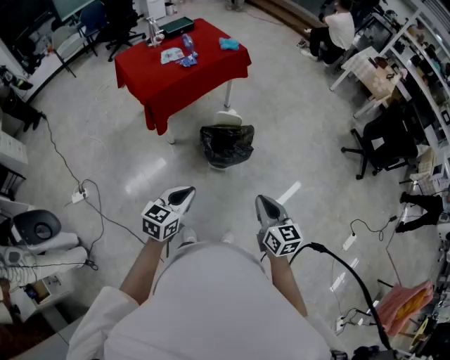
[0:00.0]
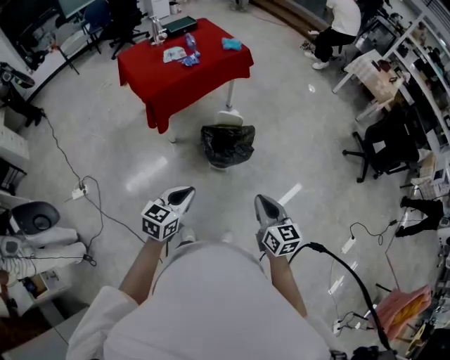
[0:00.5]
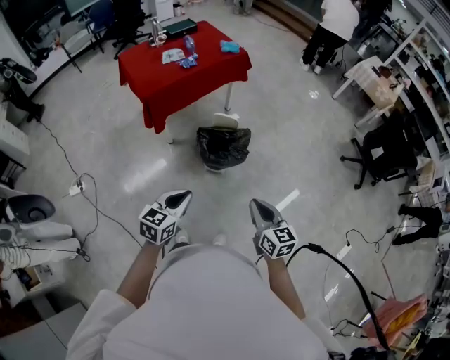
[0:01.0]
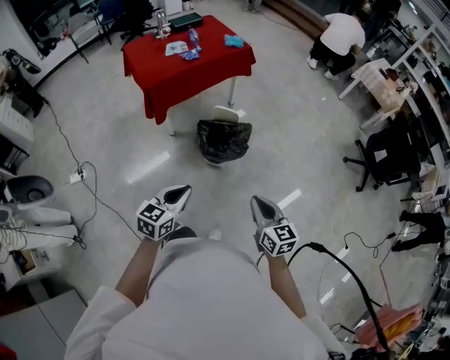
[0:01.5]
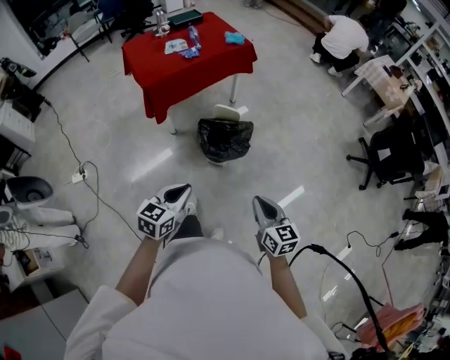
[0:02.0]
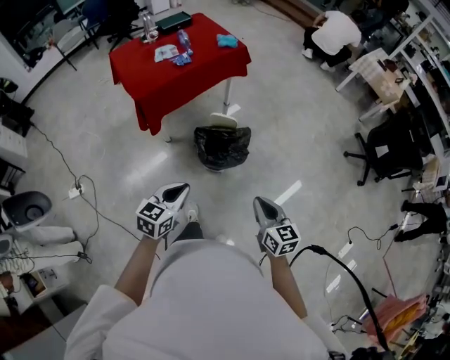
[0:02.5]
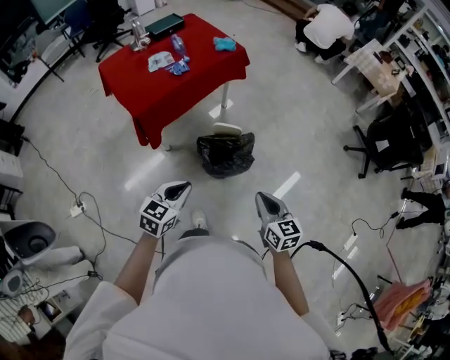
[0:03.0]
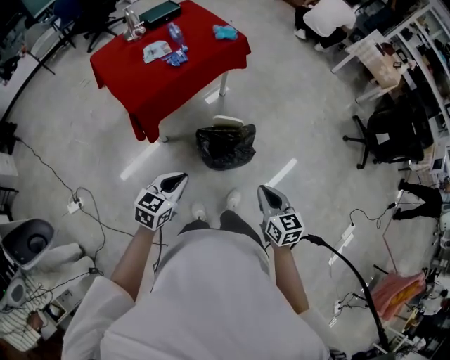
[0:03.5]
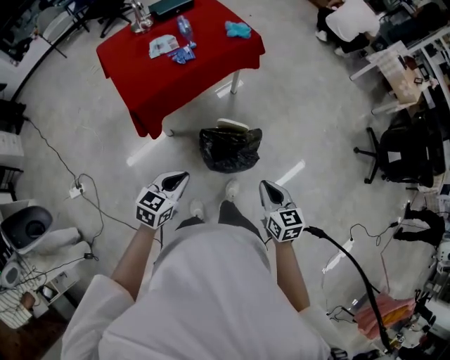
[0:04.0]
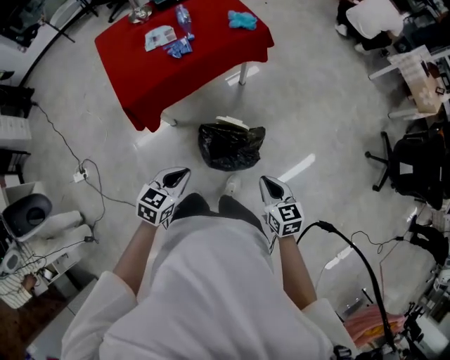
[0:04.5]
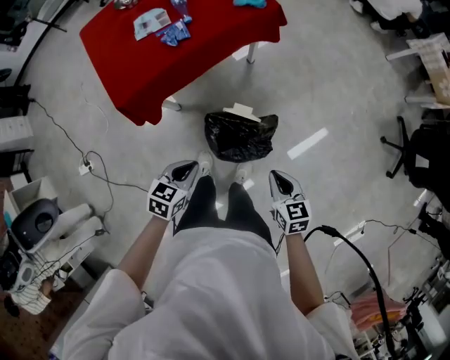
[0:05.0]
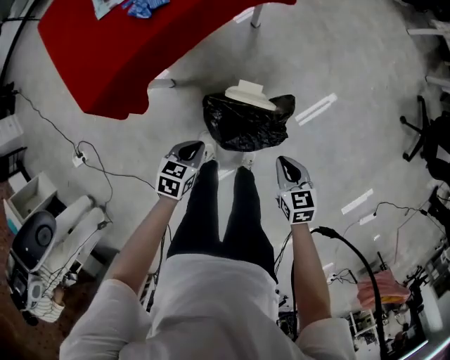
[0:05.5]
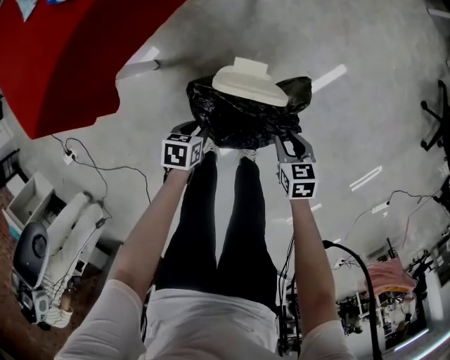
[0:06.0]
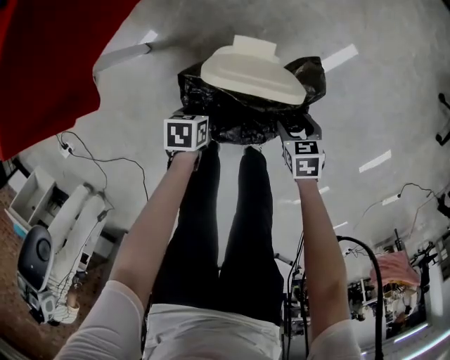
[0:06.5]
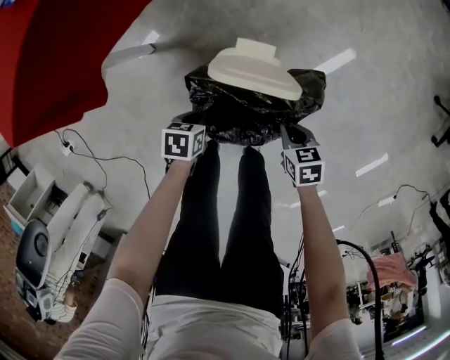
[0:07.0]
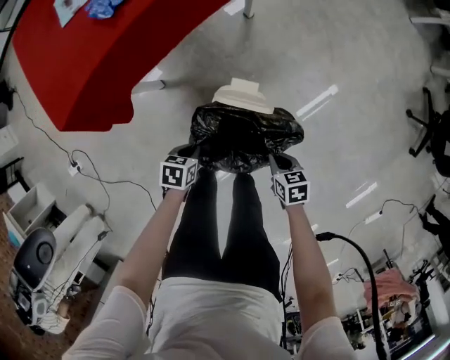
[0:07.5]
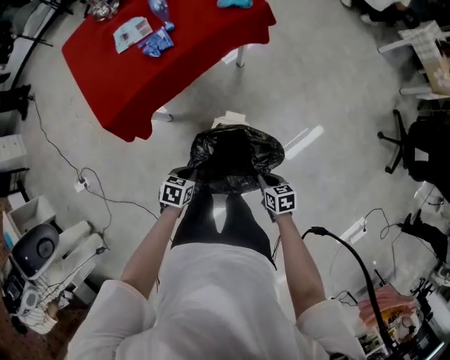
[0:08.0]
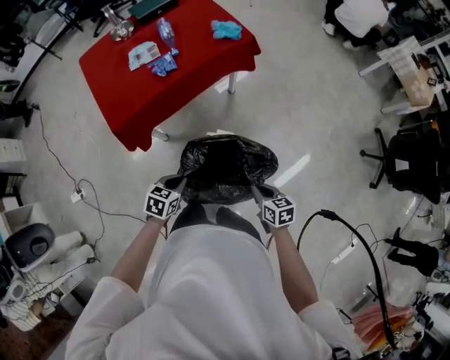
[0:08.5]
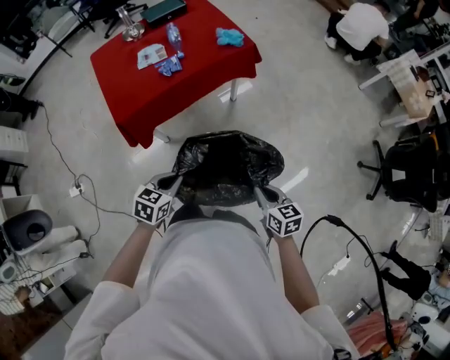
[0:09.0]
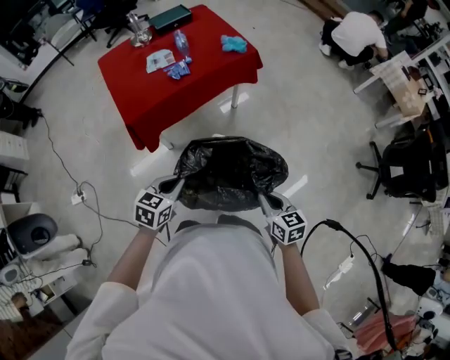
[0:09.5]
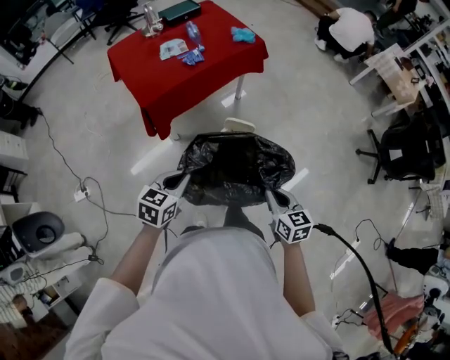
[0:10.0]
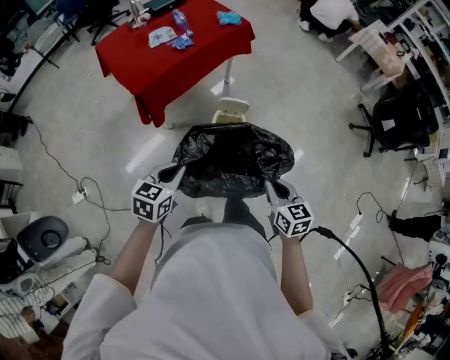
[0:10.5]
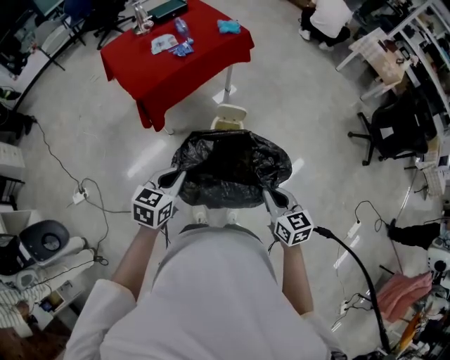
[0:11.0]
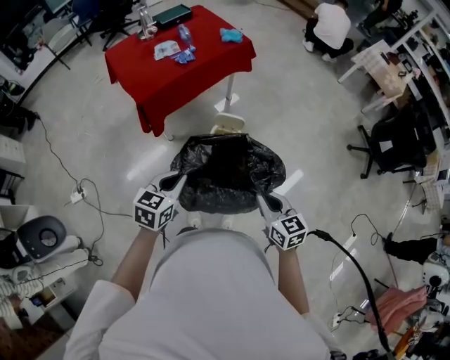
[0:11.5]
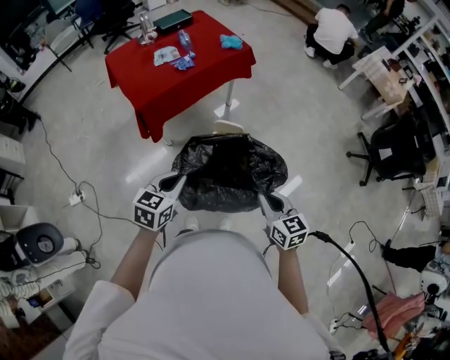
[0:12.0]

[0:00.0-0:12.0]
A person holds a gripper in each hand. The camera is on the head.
0:00.0 to 0:02.0: Both grippers move to the right, approximately 10 cm.
0:02.0 to 0:04.0: The right gripper goes approximately 30 cm forward, while the left gripper heads forward and to the left, covering roughly 30 cm.
0:04.0 to 0:06.0: Both grippers travel together downward, approximately 50 cm. The left gripper angles its fingers downward, by some 30 degrees, and opens; the right gripper swivels approximately 30 degrees, and opens up.
0:06.0 to 0:08.0: Both grippers move upward, approximately 25 cm. The right gripper closes. The left gripper closes.
0:08.0 to 0:10.0: The grippers both shift upward and backward by about 35 cm. The left gripper swivels about 30 degrees; the right gripper swivels some 30 degrees.
0:10.0 to 0:12.0: The right gripper moves upward, about 5 cm, while the left gripper moves some 5 cm.

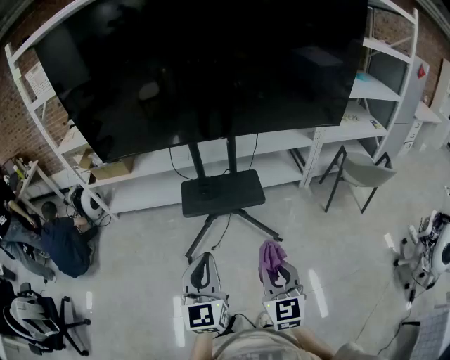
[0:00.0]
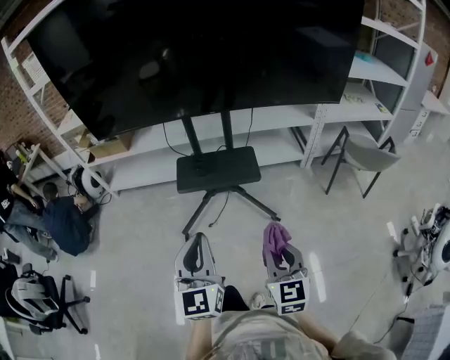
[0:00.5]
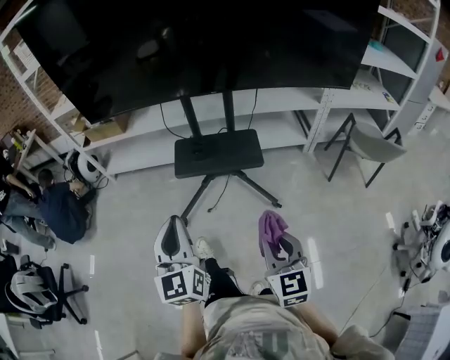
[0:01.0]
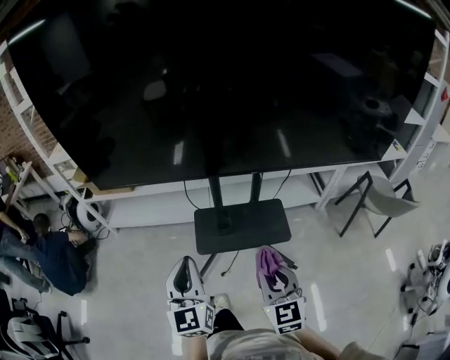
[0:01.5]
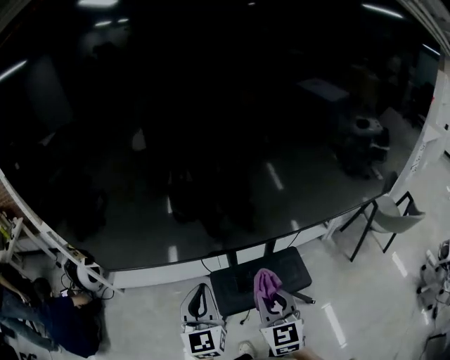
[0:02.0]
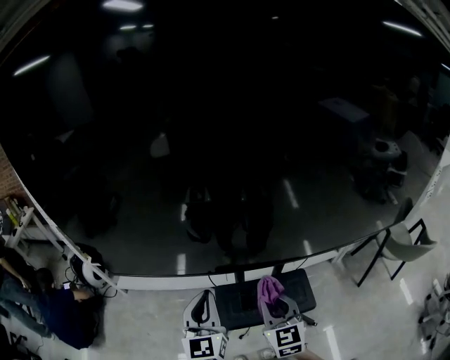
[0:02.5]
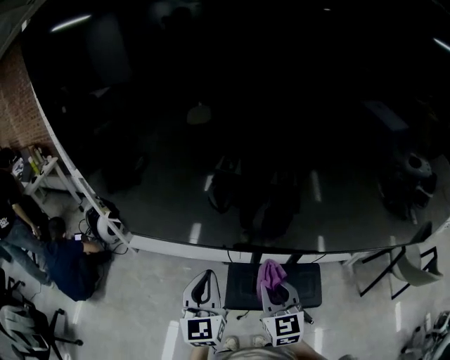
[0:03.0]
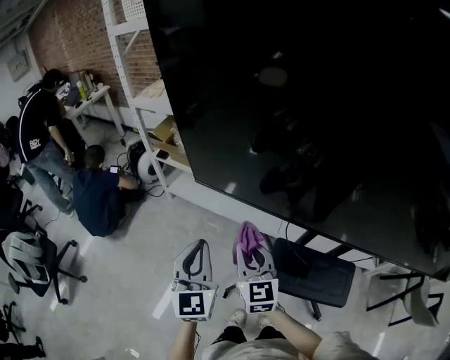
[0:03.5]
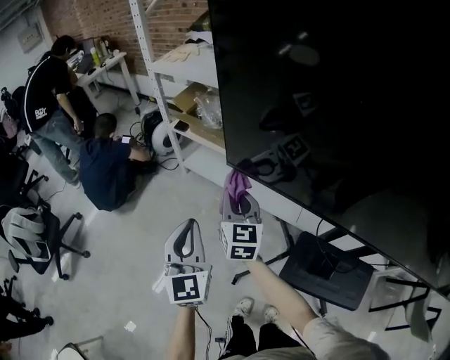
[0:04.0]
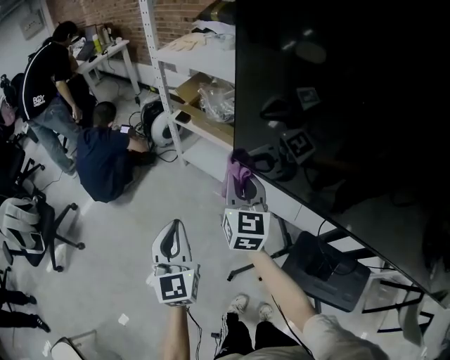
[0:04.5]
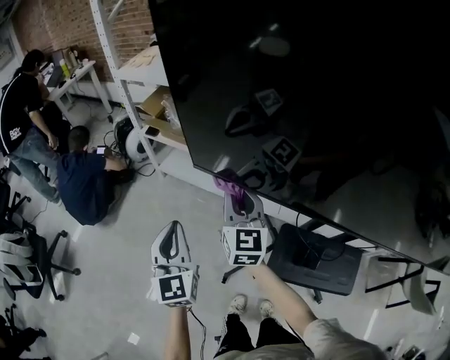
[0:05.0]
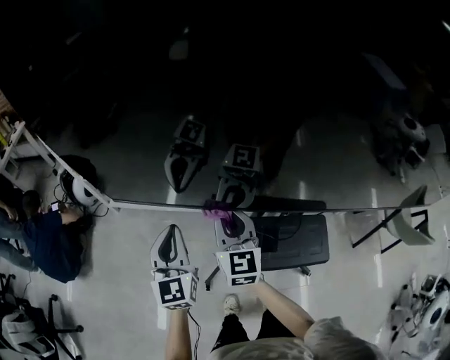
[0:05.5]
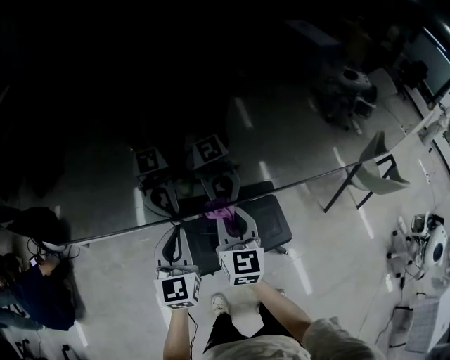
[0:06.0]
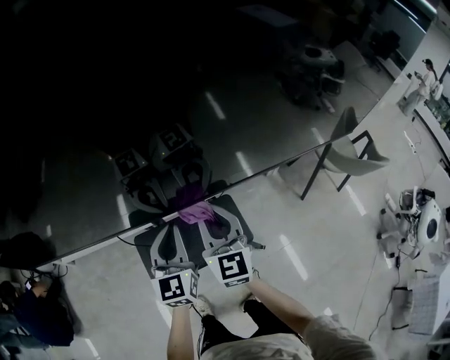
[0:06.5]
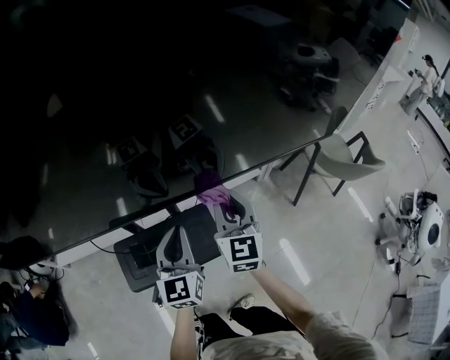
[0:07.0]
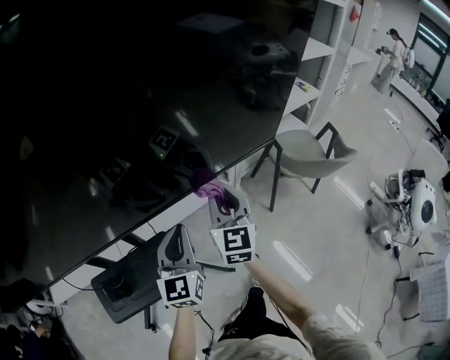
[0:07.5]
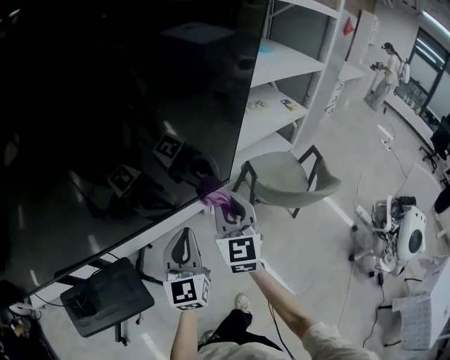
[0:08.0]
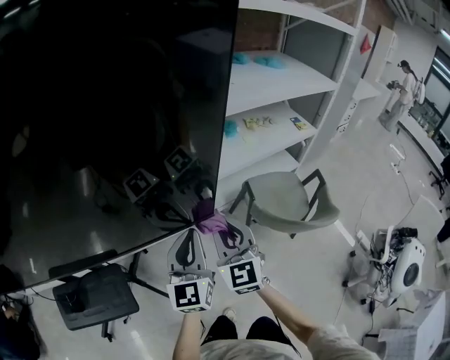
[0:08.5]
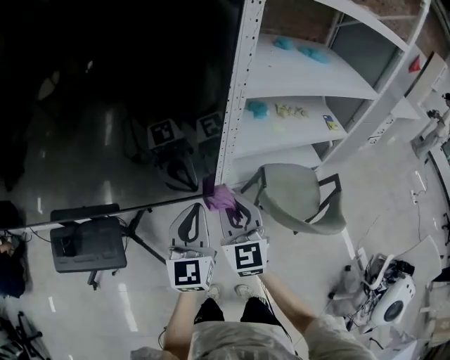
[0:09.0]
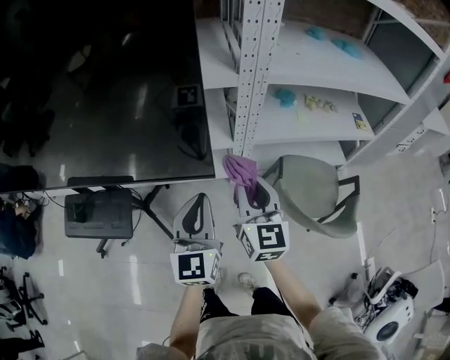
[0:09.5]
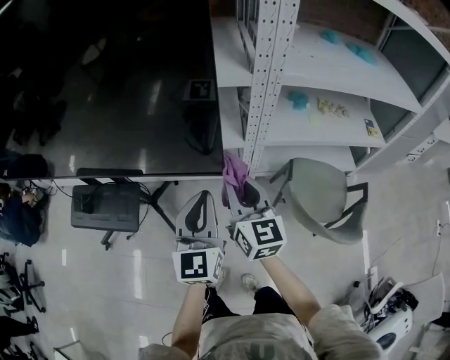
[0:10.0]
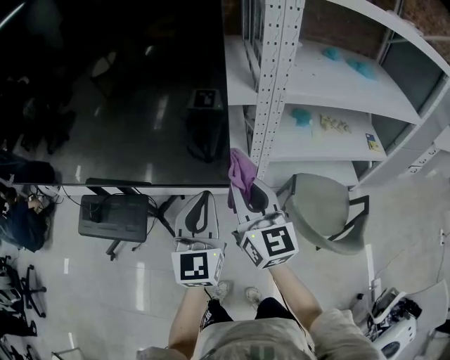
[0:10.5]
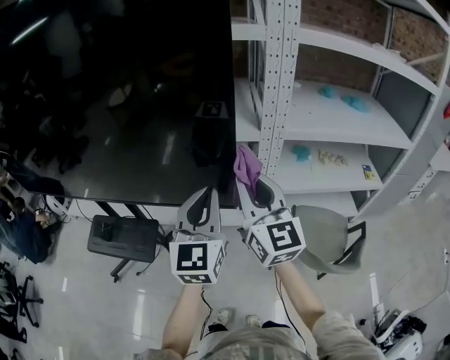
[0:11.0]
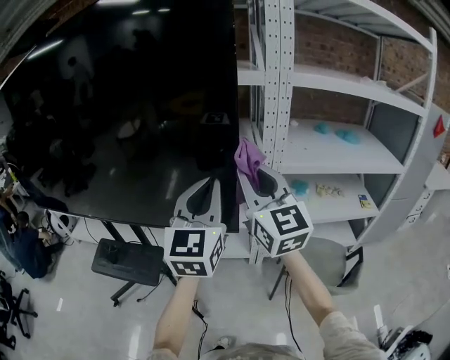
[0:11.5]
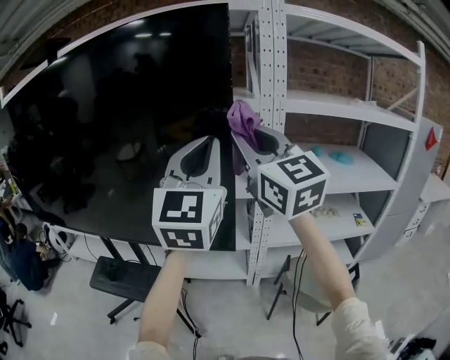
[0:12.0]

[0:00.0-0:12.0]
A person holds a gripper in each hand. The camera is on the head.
0:00.0 to 0:02.0: The two grippers travel together, forward, some 40 cm.
0:02.0 to 0:04.0: The left gripper changes place by about 35 cm, and turns by about 40 degrees. The right gripper ends up some 50 cm from where it was, and rotates approximately 40 degrees.
0:04.0 to 0:06.0: The right gripper changes place by about 50 cm, and rotates some 40 degrees. Meanwhile the left gripper ends up approximately 40 cm from where it was, and rotates roughly 50 degrees.
0:06.0 to 0:08.0: Both grippers are carried to the right, roughly 70 cm.
0:08.0 to 0:10.0: The left gripper shifts by some 15 cm, and rotates about 30 degrees. The right gripper changes its angle by approximately 40 degrees.
0:10.0 to 0:12.0: The two grippers go about 40 cm upward. The left gripper turns by some 30 degrees, while the right gripper changes its angle by some 40 degrees.

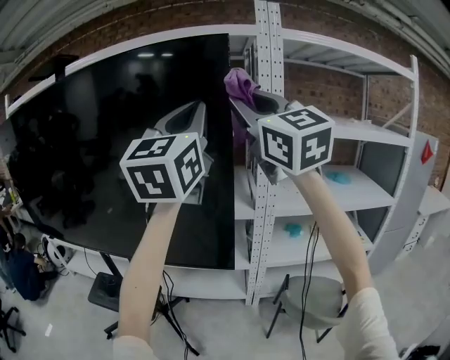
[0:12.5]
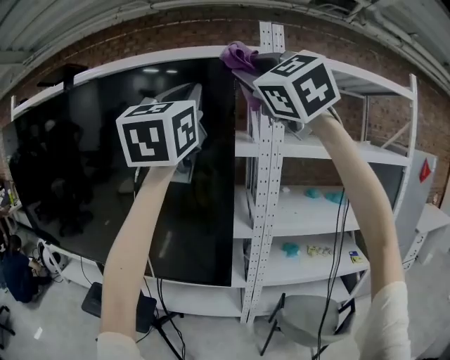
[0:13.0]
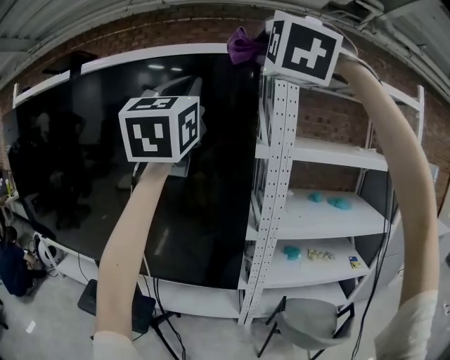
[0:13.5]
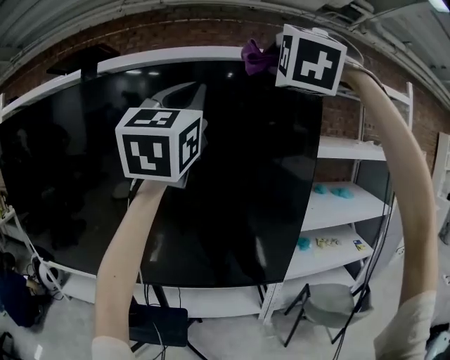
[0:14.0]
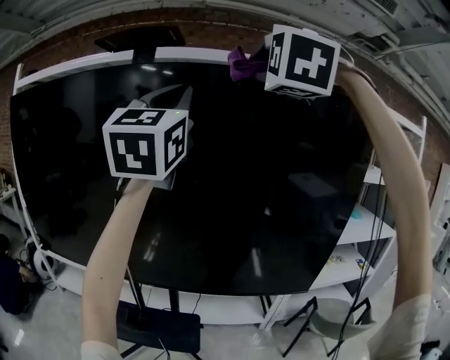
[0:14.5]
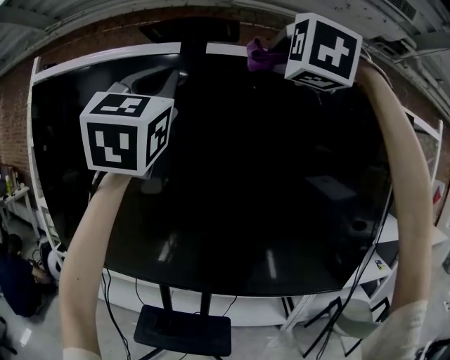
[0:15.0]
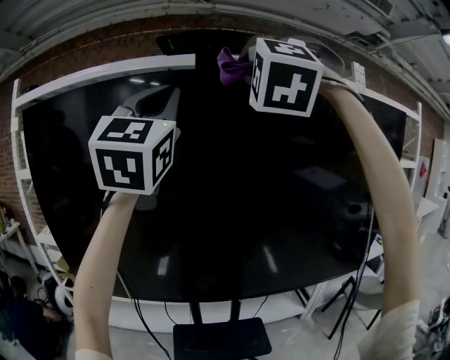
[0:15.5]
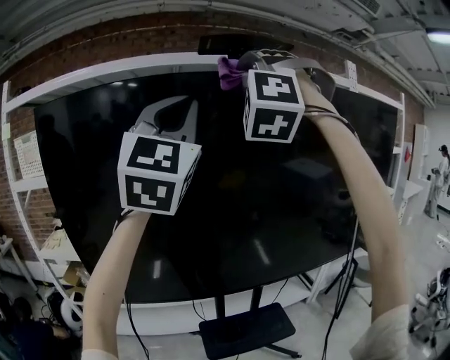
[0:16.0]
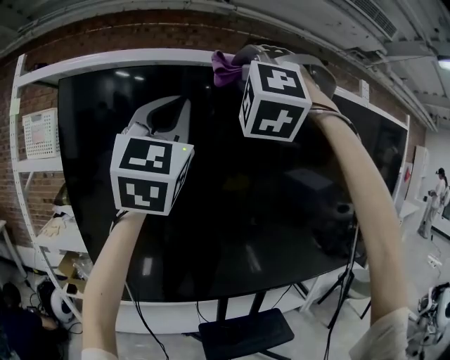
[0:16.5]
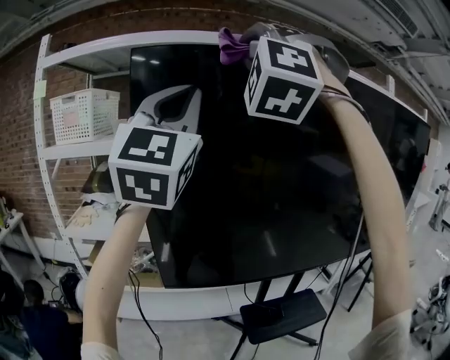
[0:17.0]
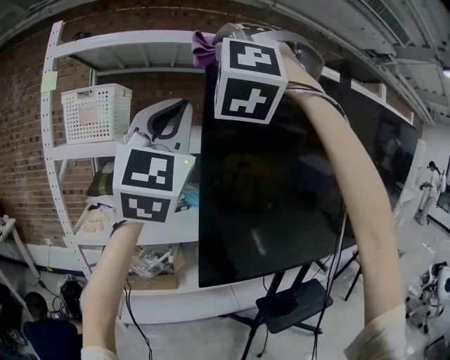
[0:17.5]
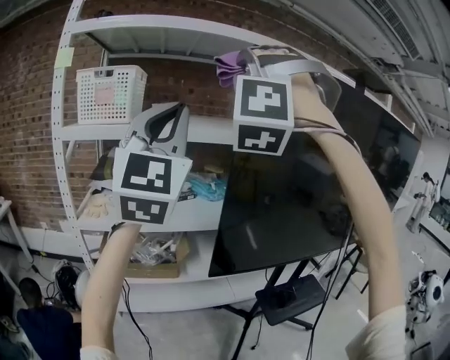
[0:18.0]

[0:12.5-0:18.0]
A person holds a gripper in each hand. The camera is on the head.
0:12.5 to 0:14.5: The grippers both shift to the left by roughly 40 cm. The right gripper rotates around the line of its fingers by some 70 degrees, counterclockwise from behind.
0:14.5 to 0:16.0: The grippers both shift to the left by some 35 cm. The right gripper changes its angle by some 30 degrees.
0:16.0 to 0:18.0: The pair of grippers is taken to the left, about 50 cm.
